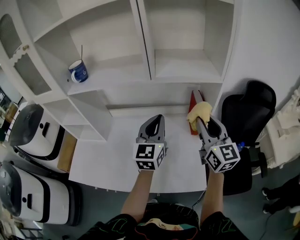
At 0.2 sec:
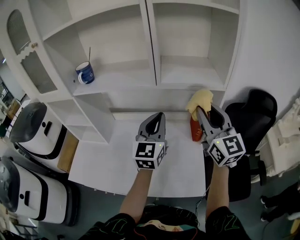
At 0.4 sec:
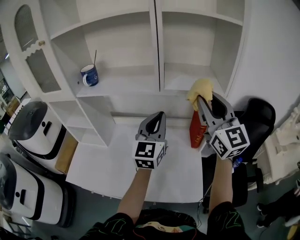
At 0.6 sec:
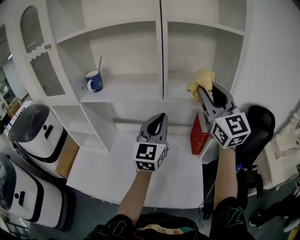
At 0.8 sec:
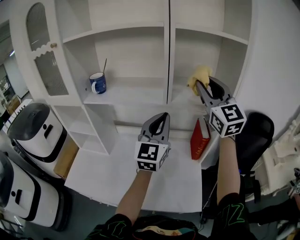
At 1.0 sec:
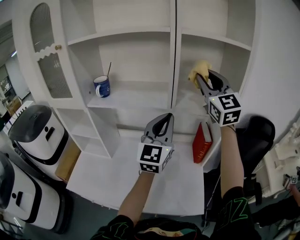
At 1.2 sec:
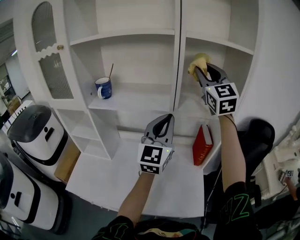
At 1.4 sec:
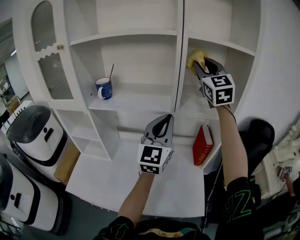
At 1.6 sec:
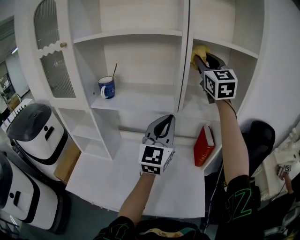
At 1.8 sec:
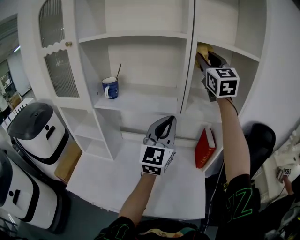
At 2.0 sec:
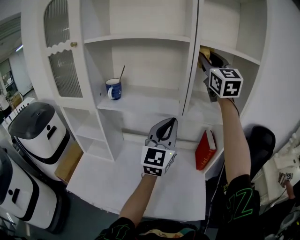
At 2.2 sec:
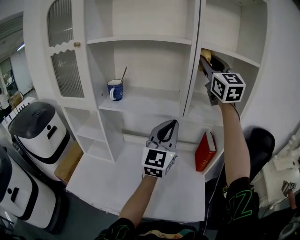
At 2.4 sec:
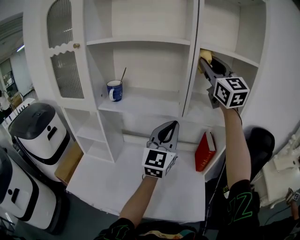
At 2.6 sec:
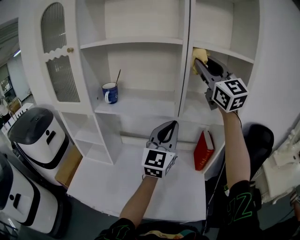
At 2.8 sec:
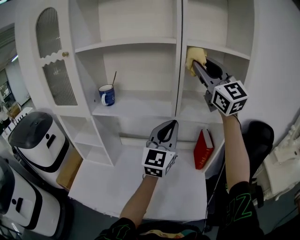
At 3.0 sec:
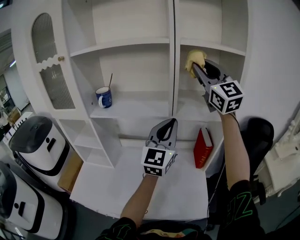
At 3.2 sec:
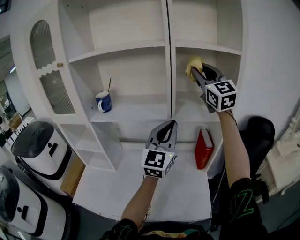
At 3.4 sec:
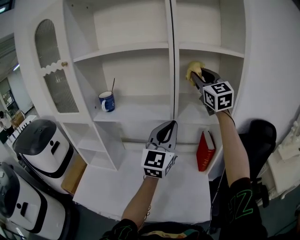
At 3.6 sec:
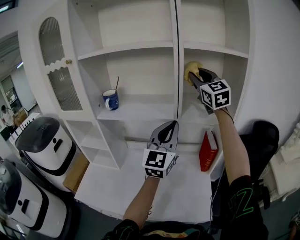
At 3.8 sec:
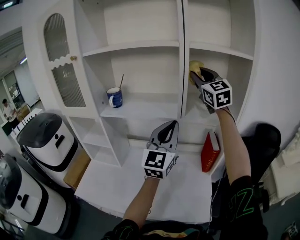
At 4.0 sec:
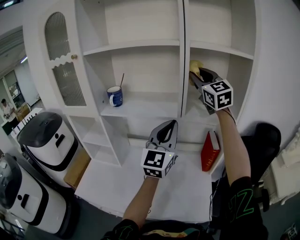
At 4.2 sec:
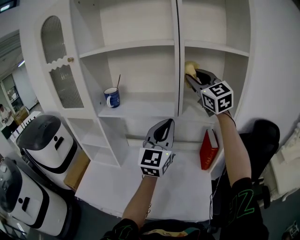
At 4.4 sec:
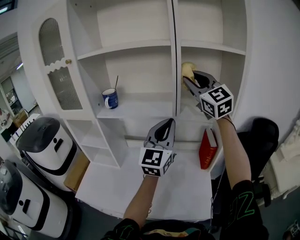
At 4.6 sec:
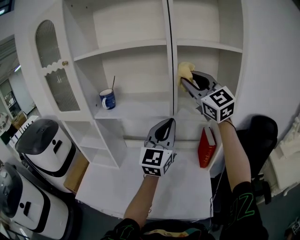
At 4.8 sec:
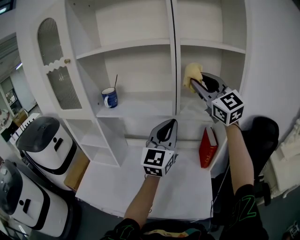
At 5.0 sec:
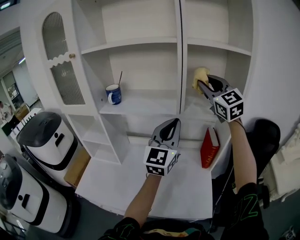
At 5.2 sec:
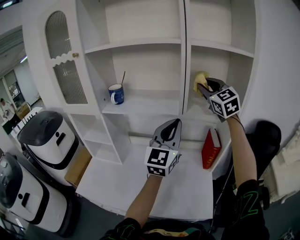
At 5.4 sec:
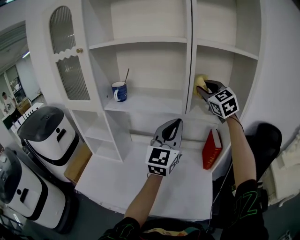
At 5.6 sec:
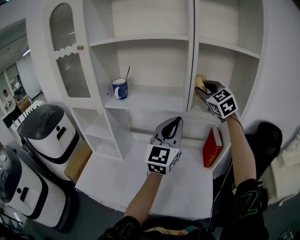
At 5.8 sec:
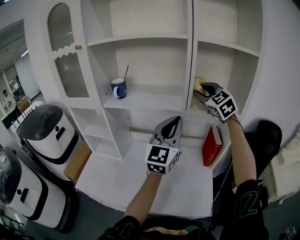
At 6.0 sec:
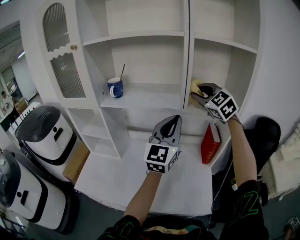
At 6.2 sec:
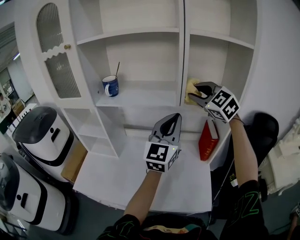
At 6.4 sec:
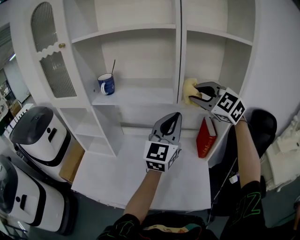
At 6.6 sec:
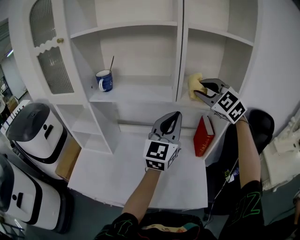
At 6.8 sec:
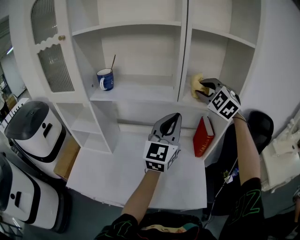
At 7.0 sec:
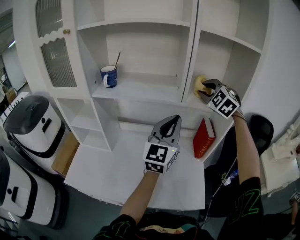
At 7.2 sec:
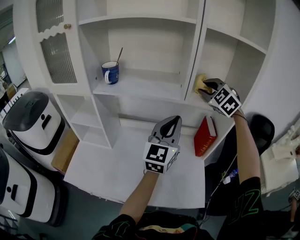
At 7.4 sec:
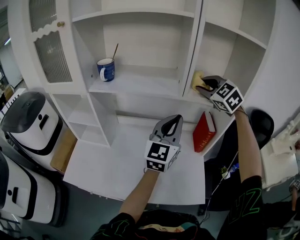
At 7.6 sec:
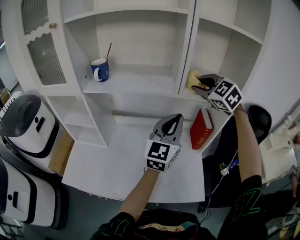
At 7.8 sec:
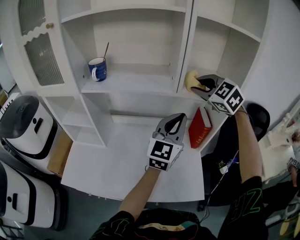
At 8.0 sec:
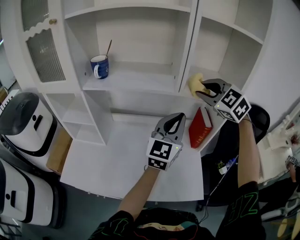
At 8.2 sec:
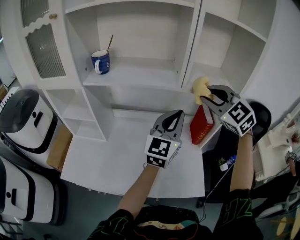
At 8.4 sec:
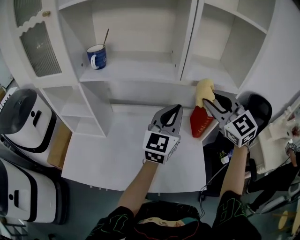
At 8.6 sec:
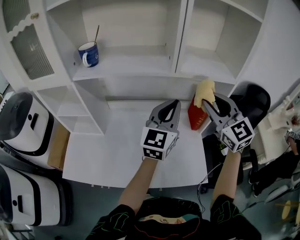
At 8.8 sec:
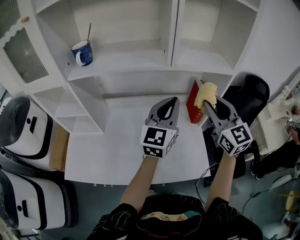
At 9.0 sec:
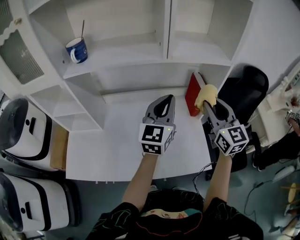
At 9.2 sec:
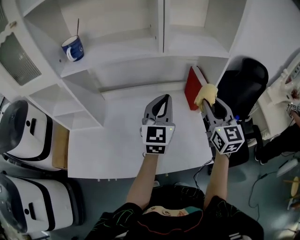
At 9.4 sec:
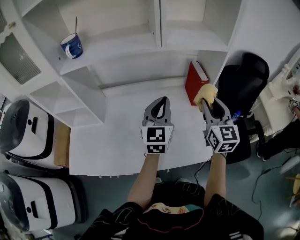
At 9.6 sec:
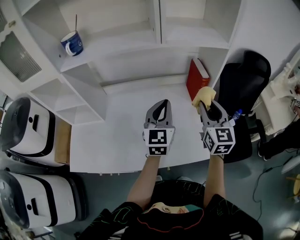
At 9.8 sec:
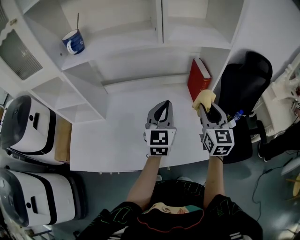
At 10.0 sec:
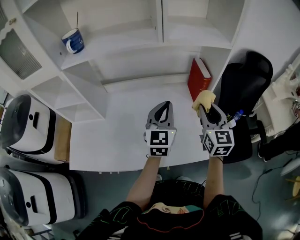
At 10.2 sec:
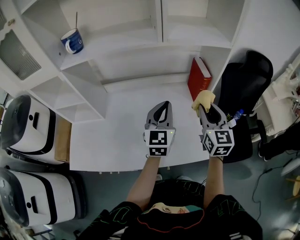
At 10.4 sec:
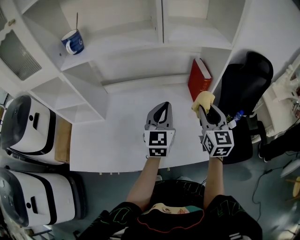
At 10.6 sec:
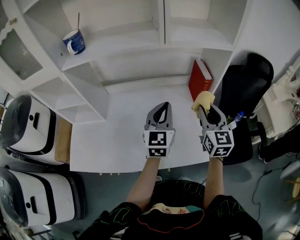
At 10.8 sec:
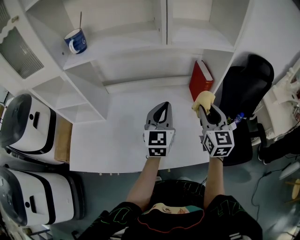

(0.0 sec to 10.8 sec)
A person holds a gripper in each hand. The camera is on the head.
0.0 sec - 1.6 sec: The left gripper heads upward, covering roughly 15 cm; the right gripper goes roughly 35 cm upward and forward, and swivels about 30 degrees.
1.6 sec - 3.0 sec: The right gripper is displaced backward by about 5 cm.
3.0 sec - 4.6 sec: The right gripper moves some 5 cm forward and comes back.
4.6 sec - 6.2 sec: The right gripper moves downward, some 10 cm, and angles its fingers downward, by approximately 30 degrees.
6.2 sec - 7.8 sec: The right gripper reaches some 5 cm forward, then returns, while the left gripper heads downward, covering roughly 5 cm.
7.8 sec - 9.2 sec: The right gripper goes roughly 25 cm backward, downward and to the right, and swivels about 50 degrees, while the left gripper goes some 10 cm downward.
9.2 sec - 10.8 sec: Both grippers move downward, approximately 5 cm.

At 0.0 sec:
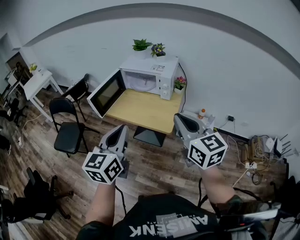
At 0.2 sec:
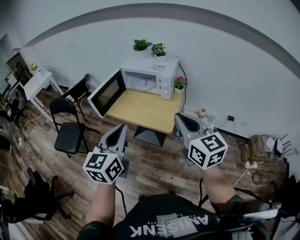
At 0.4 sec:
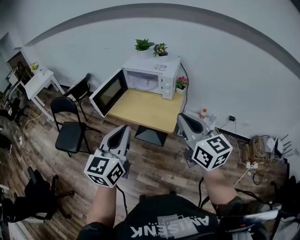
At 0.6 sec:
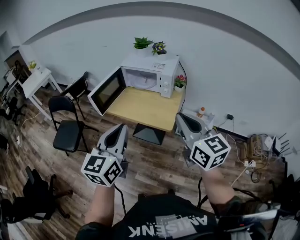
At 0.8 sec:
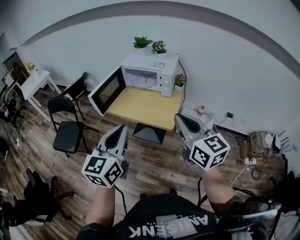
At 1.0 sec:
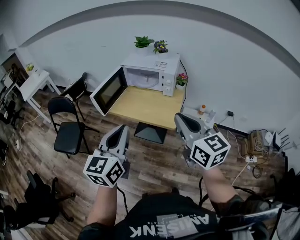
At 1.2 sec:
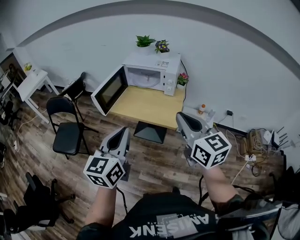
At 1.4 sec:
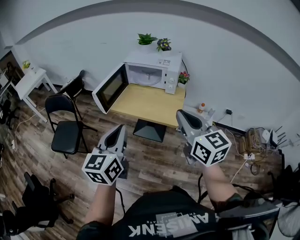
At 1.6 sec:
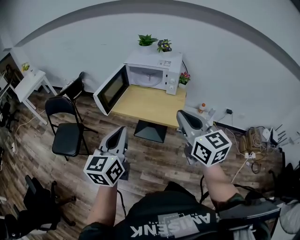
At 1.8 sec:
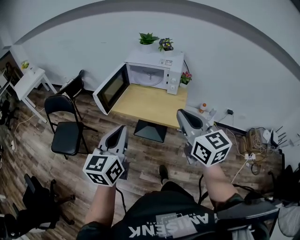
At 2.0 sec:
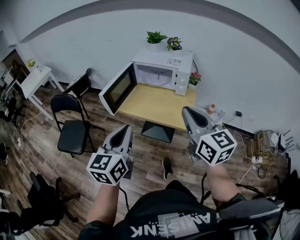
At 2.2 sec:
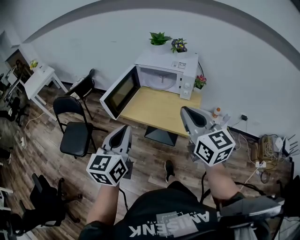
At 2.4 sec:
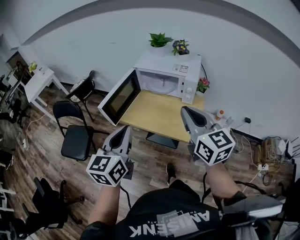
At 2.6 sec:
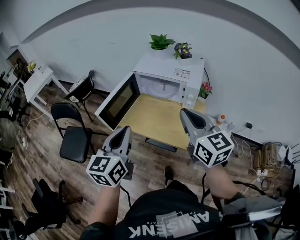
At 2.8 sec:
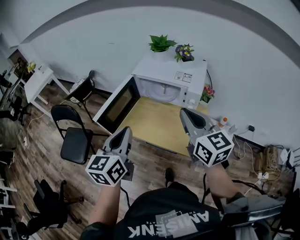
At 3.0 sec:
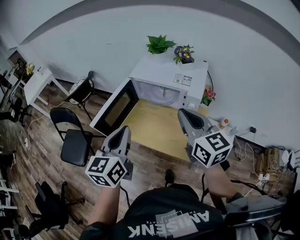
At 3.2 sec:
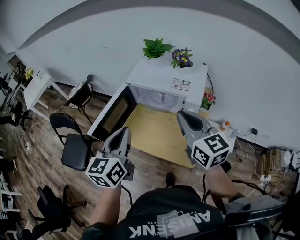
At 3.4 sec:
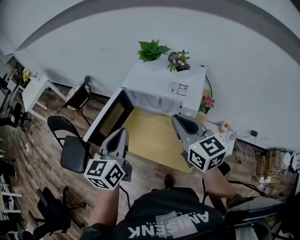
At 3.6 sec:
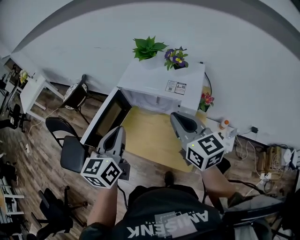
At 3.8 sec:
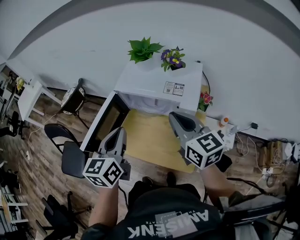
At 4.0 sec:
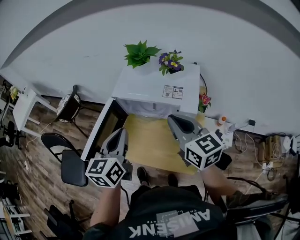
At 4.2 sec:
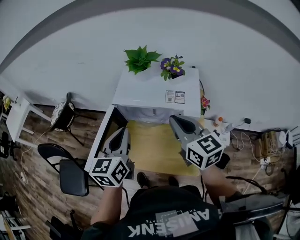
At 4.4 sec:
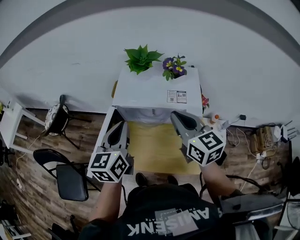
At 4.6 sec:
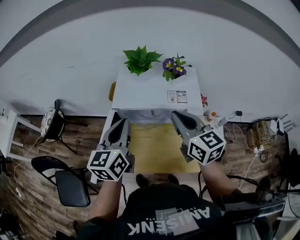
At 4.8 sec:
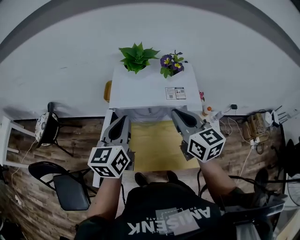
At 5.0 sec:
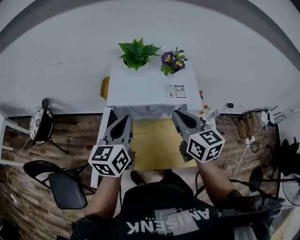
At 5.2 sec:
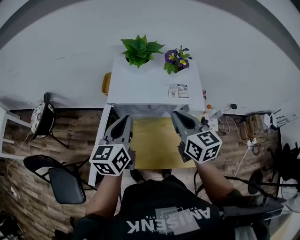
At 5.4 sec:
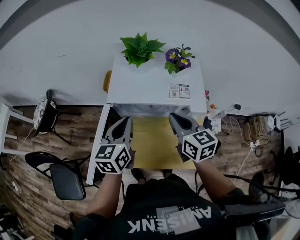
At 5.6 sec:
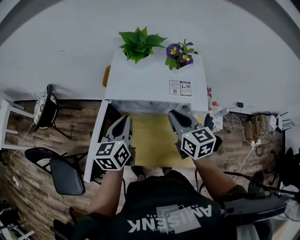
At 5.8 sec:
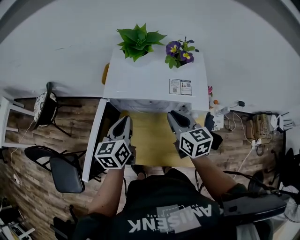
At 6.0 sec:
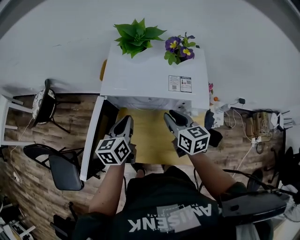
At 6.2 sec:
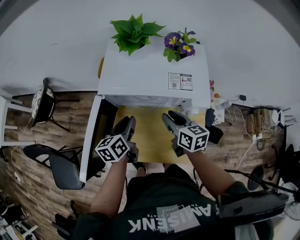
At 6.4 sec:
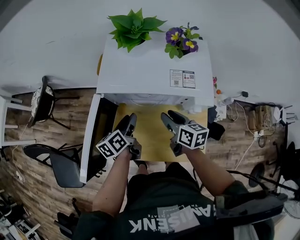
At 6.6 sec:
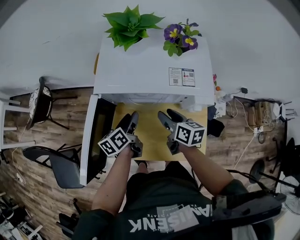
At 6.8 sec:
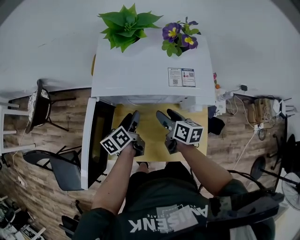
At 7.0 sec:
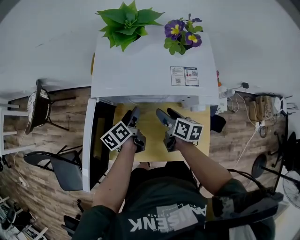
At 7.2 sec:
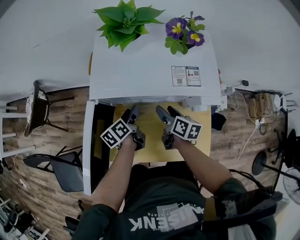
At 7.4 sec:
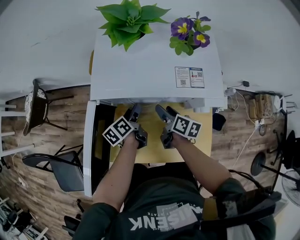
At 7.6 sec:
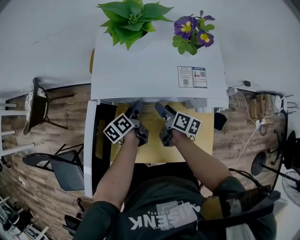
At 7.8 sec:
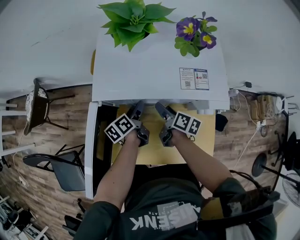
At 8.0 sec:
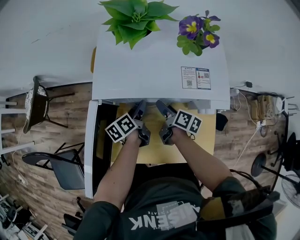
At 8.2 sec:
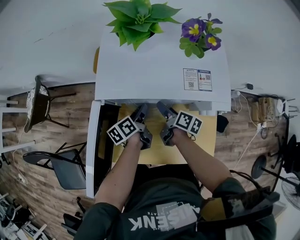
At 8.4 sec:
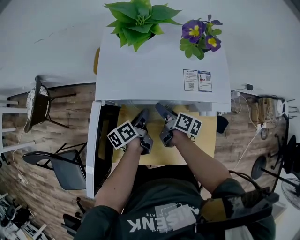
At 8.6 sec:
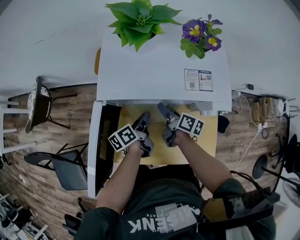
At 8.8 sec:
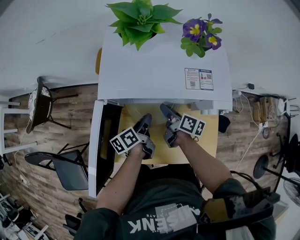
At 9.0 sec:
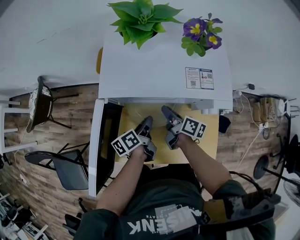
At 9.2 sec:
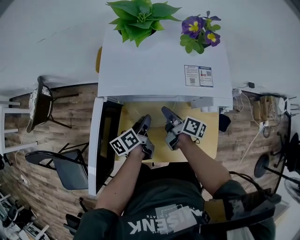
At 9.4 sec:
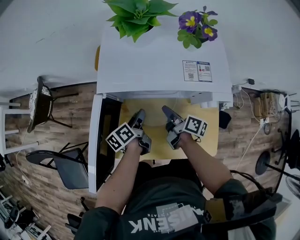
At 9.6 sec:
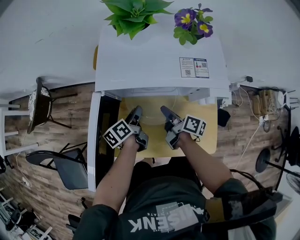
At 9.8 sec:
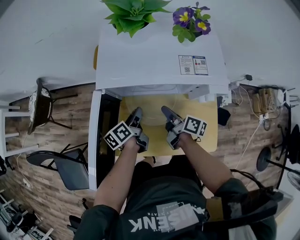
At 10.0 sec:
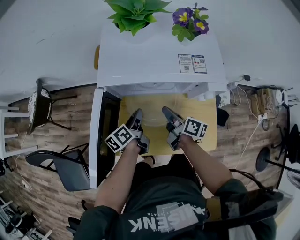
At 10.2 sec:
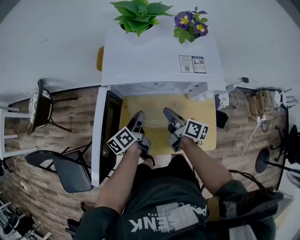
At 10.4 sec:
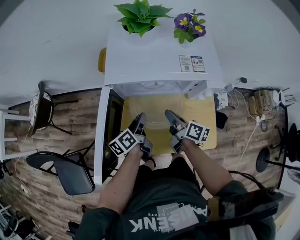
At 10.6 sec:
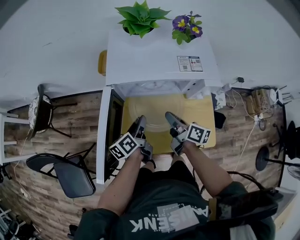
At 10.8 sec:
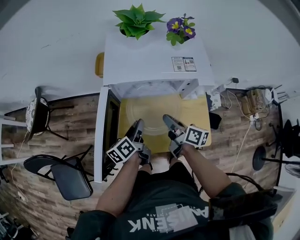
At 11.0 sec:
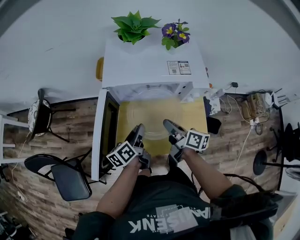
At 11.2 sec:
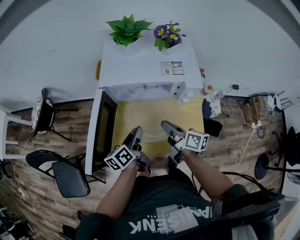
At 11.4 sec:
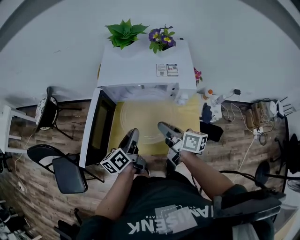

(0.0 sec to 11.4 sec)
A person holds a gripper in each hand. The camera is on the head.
0.0 sec - 1.4 sec: Both grippers travel together to the left, some 10 cm.
1.4 sec - 2.8 sec: Both grippers move forward, about 25 cm.
2.8 sec - 4.2 sec: Both grippers travel together forward, roughly 20 cm.
4.2 sec - 5.6 sec: Both grippers travel together downward and forward, about 15 cm.
5.6 sec - 7.2 sec: Both grippers travel together downward, approximately 20 cm. The left gripper turns by some 40 degrees, and opens up, while the right gripper swivels some 40 degrees, and opens up.
7.2 sec - 8.6 sec: The left gripper closes its fingers.
8.6 sec - 10.0 sec: The left gripper changes place by roughly 5 cm, while the right gripper moves backward, some 5 cm, and closes up.
10.0 sec - 11.4 sec: The right gripper goes approximately 15 cm upward and backward, while the left gripper is displaced backward and upward by about 15 cm.

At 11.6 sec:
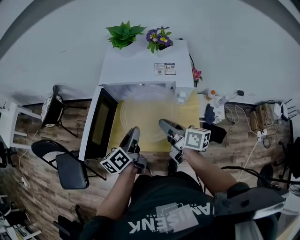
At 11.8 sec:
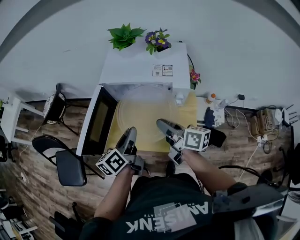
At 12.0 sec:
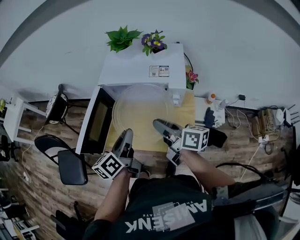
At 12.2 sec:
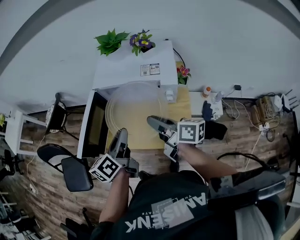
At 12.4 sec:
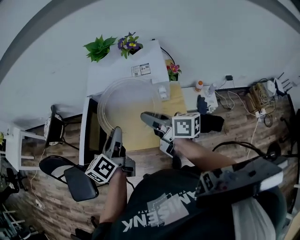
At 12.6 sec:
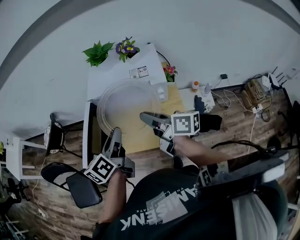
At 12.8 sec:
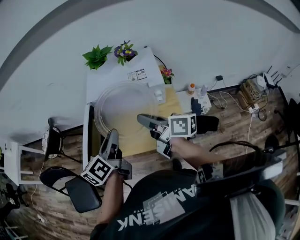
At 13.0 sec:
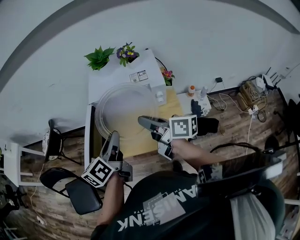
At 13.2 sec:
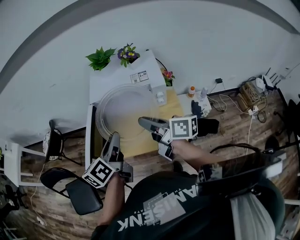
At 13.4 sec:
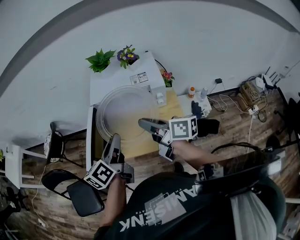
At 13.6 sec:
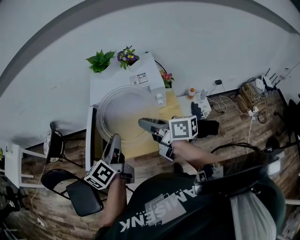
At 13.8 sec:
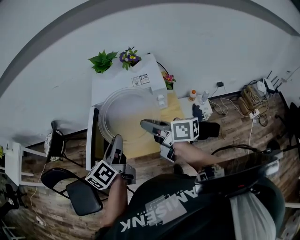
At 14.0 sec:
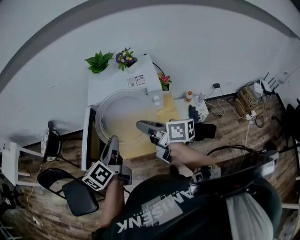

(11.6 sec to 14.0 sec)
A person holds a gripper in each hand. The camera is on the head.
11.6 sec - 12.8 sec: The grippers both shift upward by approximately 15 cm.
12.8 sec - 14.0 sec: There are only small adjustments of the grippers.
